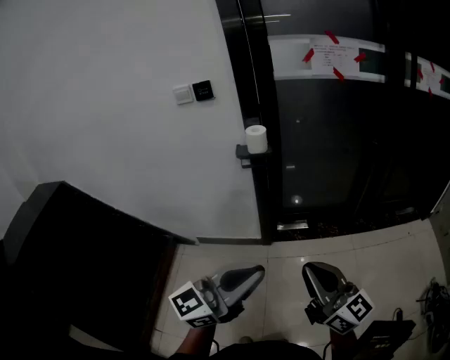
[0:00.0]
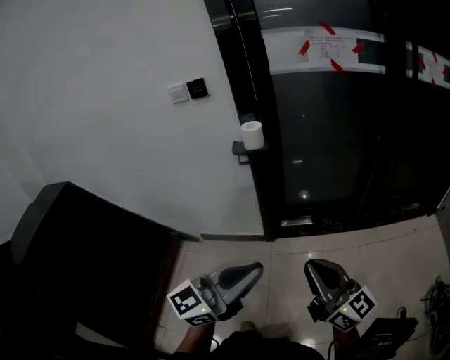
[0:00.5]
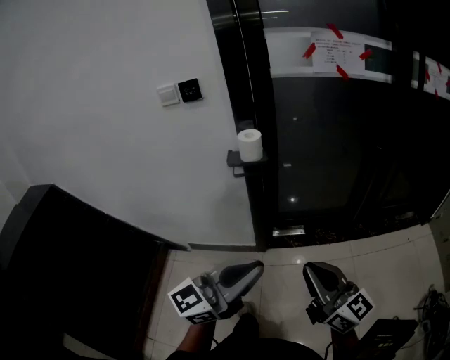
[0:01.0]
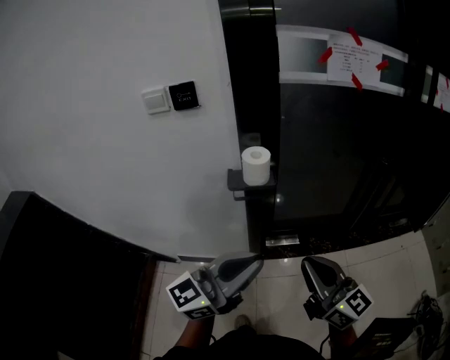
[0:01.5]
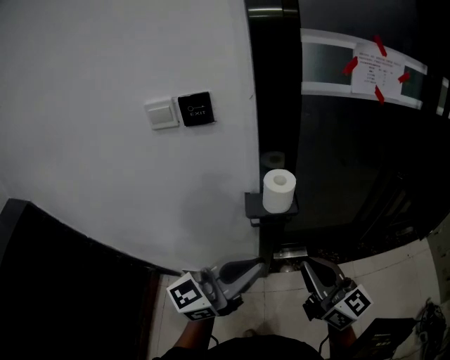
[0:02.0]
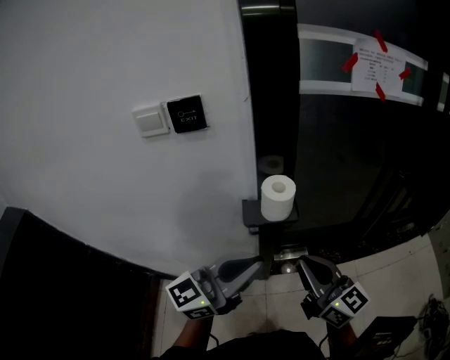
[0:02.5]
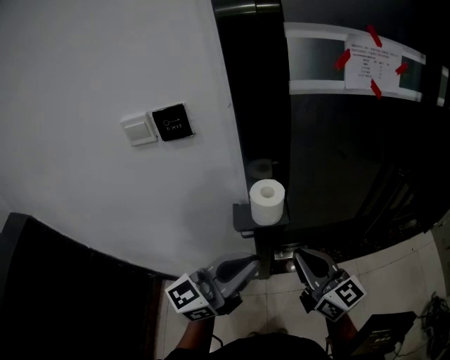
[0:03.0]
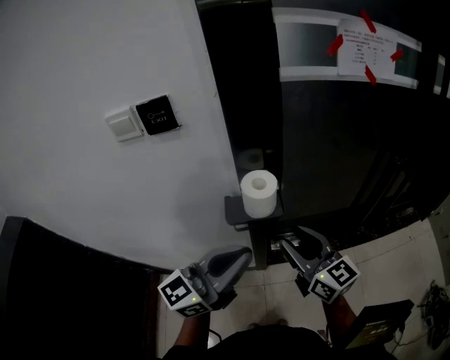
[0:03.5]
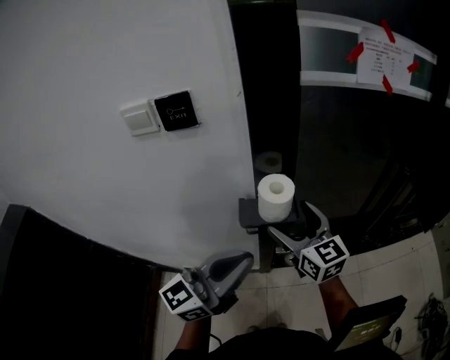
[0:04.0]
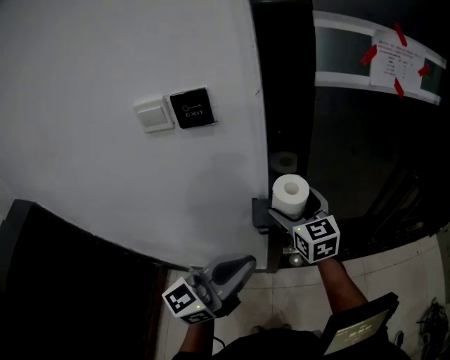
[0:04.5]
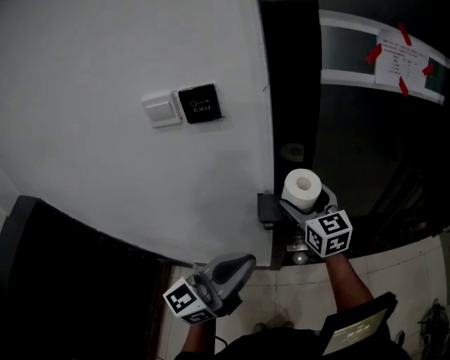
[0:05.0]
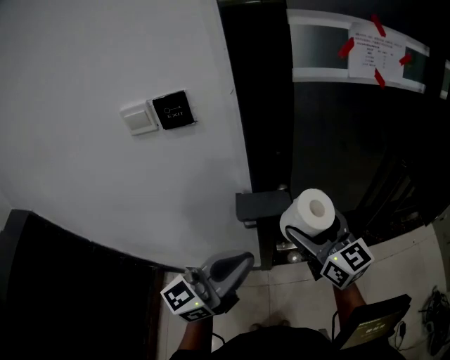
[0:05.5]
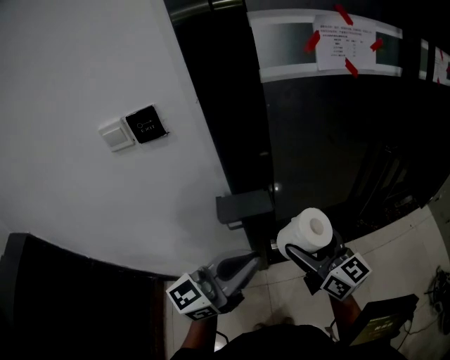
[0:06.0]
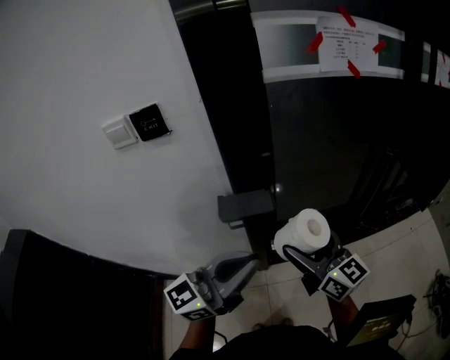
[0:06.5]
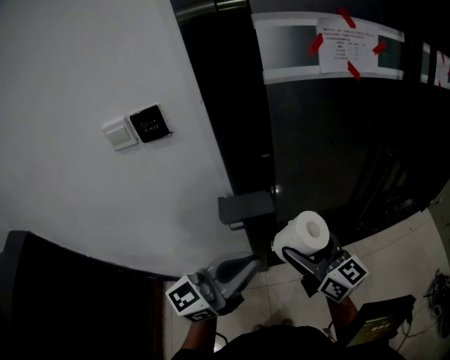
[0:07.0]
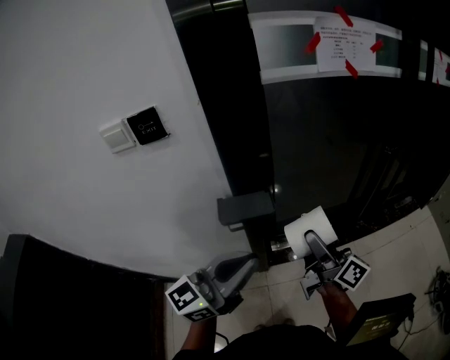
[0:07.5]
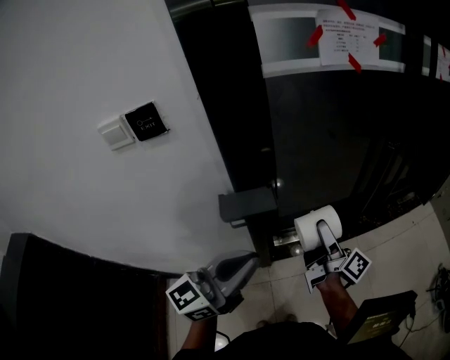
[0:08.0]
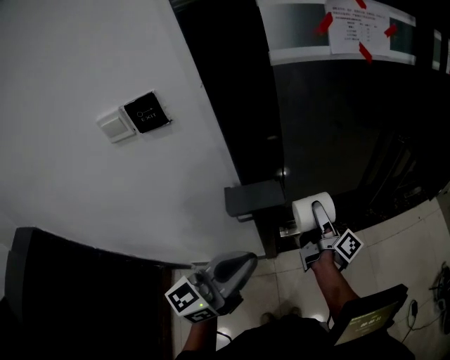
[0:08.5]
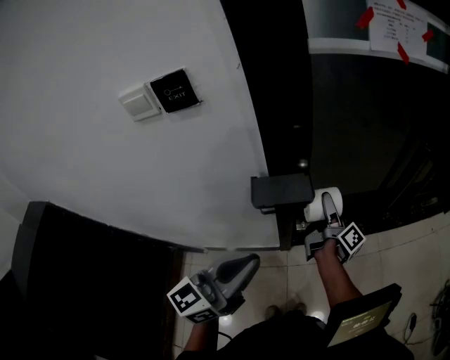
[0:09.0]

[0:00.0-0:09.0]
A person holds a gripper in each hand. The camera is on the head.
0.0 to 2.0 s: Both grippers travel together forward and to the left, some 40 cm.
2.0 to 4.5 s: The right gripper is displaced forward and to the left by some 25 cm, rotates some 30 degrees, and opens its fingers. Meanwhile the left gripper travels forward by about 5 cm.
4.5 to 7.0 s: The left gripper shifts about 10 cm to the right. The right gripper moves to the right and backward, about 20 cm, and swivels some 30 degrees.
7.0 to 9.0 s: The right gripper heads downward and forward, covering about 20 cm, and rotates around the line of its fingers by roughly 70 degrees, clockwise from behind; the left gripper travels to the left by about 5 cm.

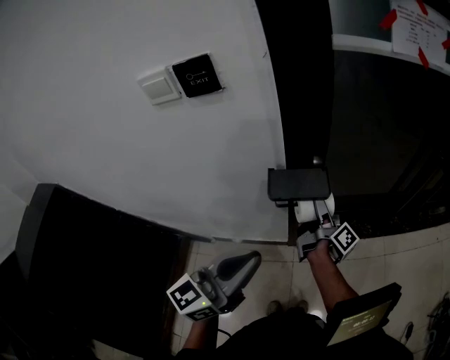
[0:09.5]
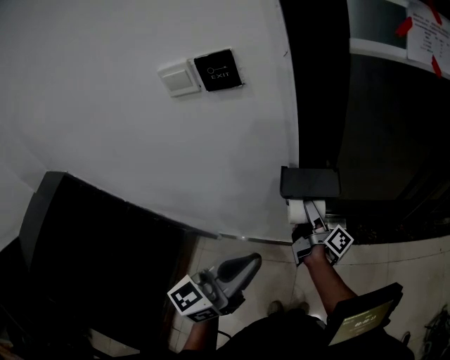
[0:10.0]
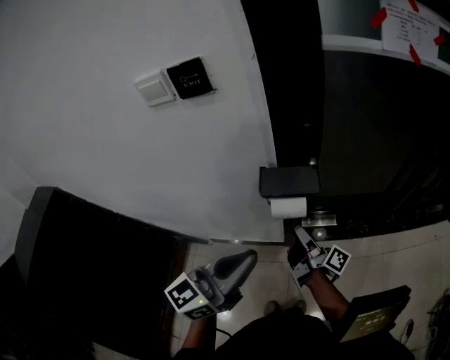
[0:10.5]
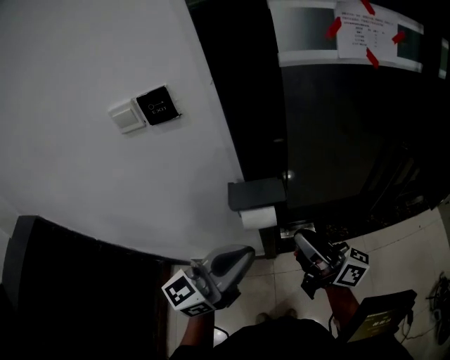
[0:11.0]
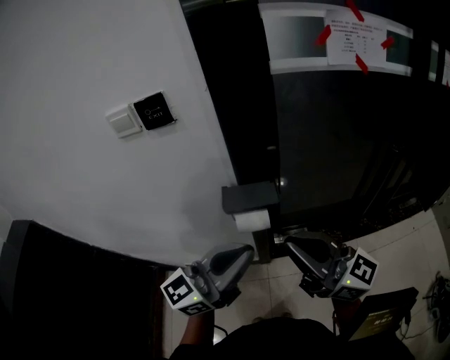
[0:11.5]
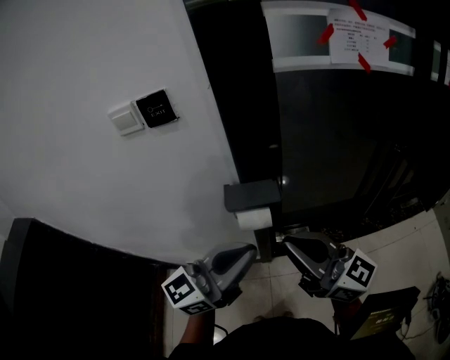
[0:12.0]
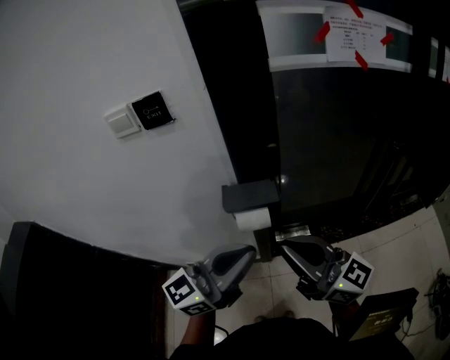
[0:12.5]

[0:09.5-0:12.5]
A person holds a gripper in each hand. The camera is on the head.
9.5 to 11.0 s: The right gripper heads upward and backward, covering approximately 20 cm, turns by some 50 degrees, and closes its fingers. The left gripper travels to the right by about 5 cm.
11.0 to 12.5 s: The right gripper shifts roughly 10 cm upward and backward, and changes its angle by approximately 30 degrees.

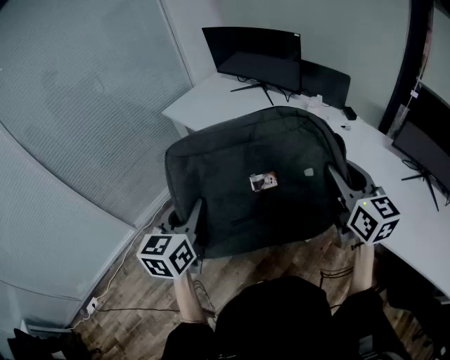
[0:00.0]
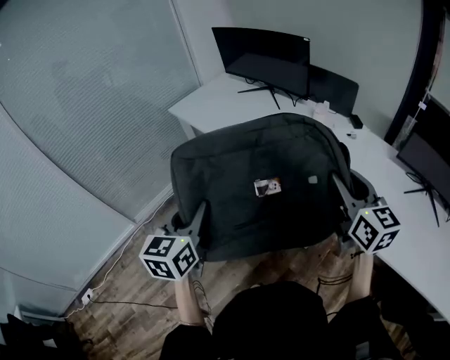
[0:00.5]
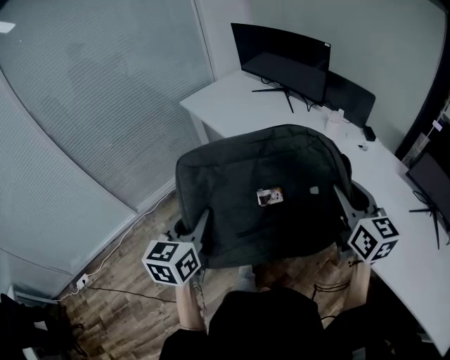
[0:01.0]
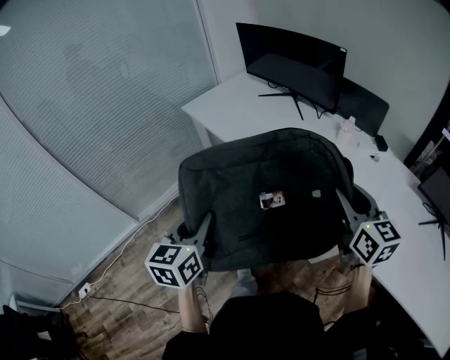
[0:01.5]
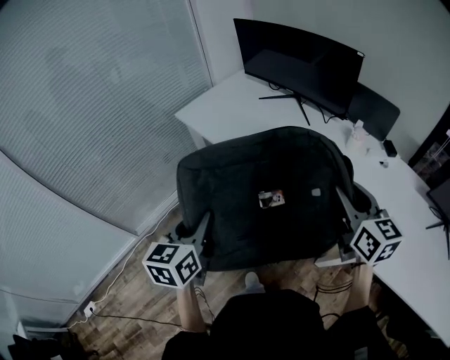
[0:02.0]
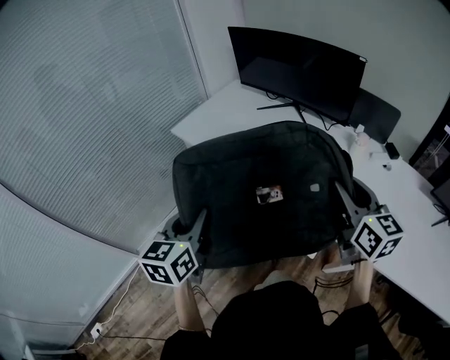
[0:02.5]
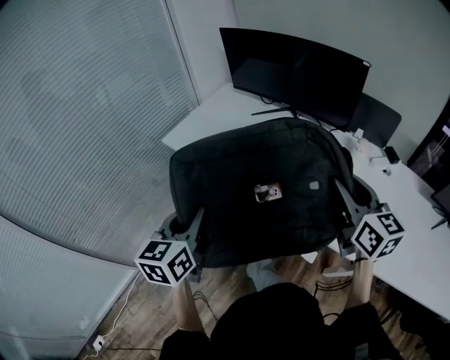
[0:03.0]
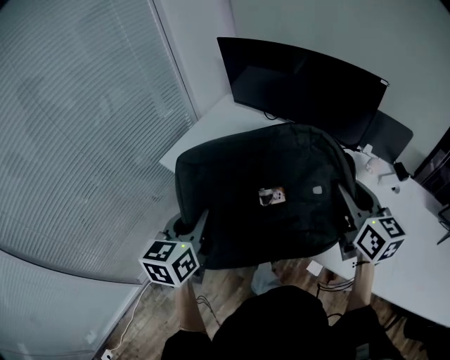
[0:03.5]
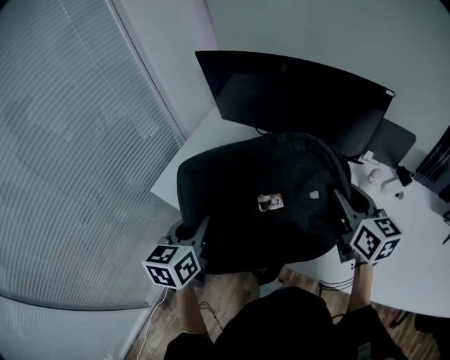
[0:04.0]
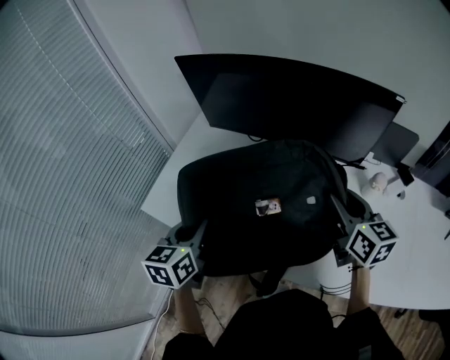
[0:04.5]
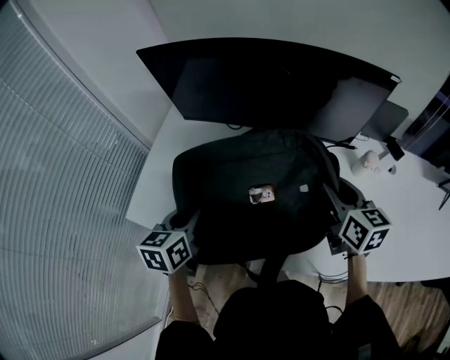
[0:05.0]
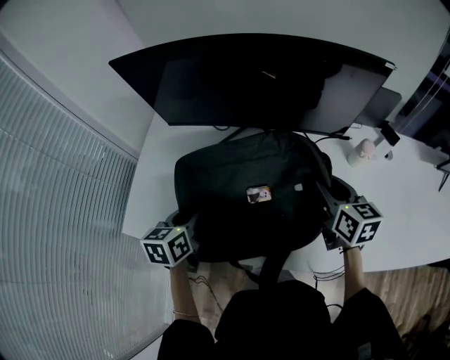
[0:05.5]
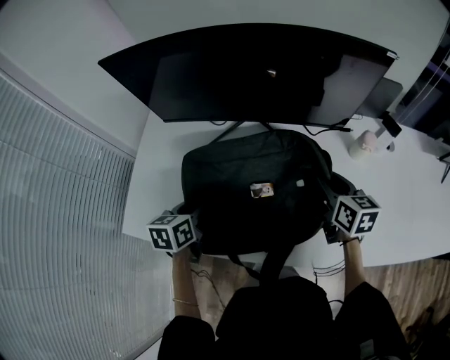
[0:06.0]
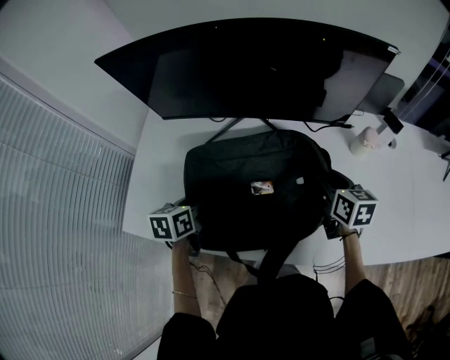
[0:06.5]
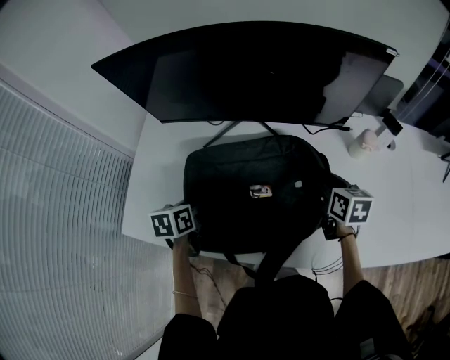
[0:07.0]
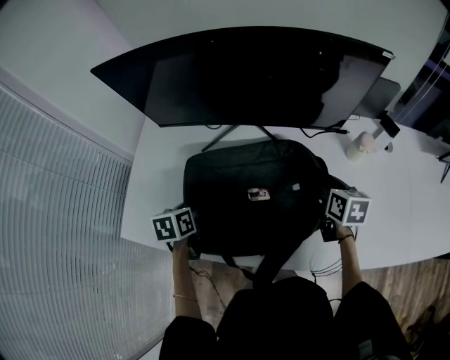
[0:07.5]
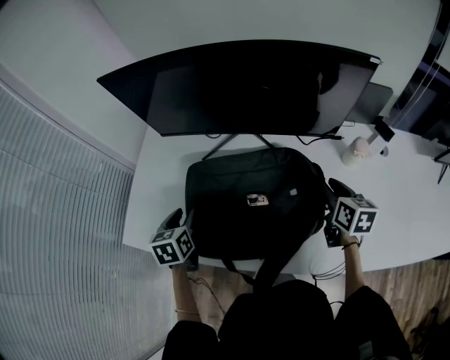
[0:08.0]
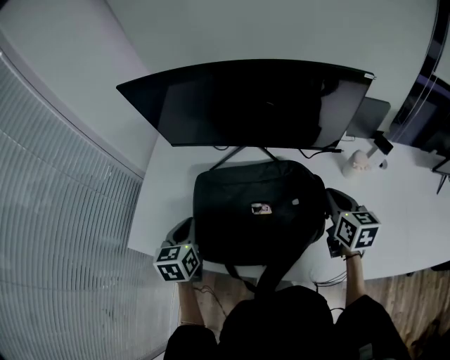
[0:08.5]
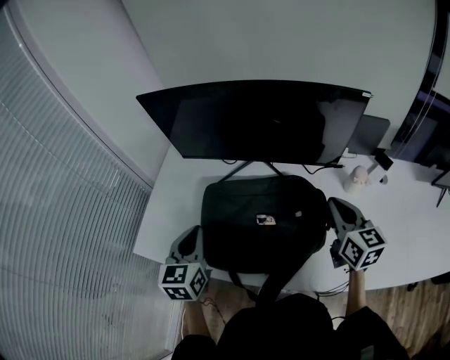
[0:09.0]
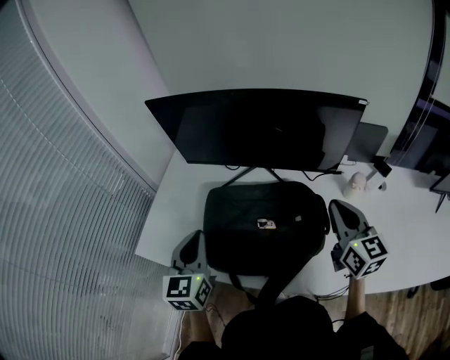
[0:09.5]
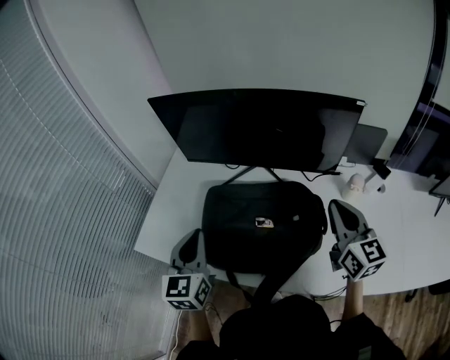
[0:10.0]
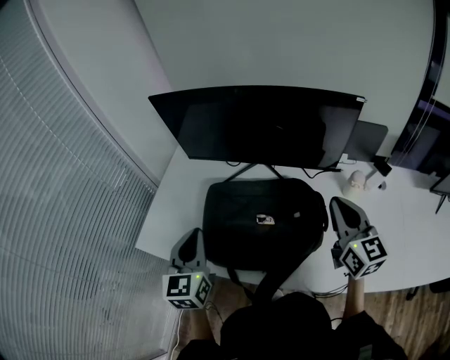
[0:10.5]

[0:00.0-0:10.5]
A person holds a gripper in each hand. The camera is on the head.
0.0 to 2.0 s: The two grippers go some 20 cm forward and to the left.
2.0 to 4.0 s: The two grippers go roughly 35 cm forward.
4.0 to 6.5 s: The right gripper goes about 20 cm downward and forward, and changes its angle by some 30 degrees. Meanwhile the left gripper shifts some 25 cm forward and downward, and turns by about 30 degrees.
6.5 to 8.5 s: Both grippers move upward, about 5 cm. The left gripper rotates some 20 degrees, and opens, then closes once more. Meanwhile the right gripper closes its fingers.
8.5 to 10.5 s: Both grippers travel together upward and backward, approximately 15 cm. The right gripper changes its angle by some 30 degrees, while the left gripper rotates roughly 20 degrees.

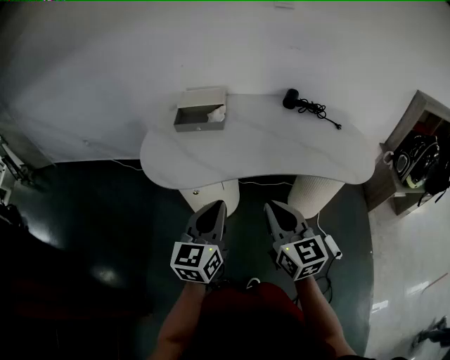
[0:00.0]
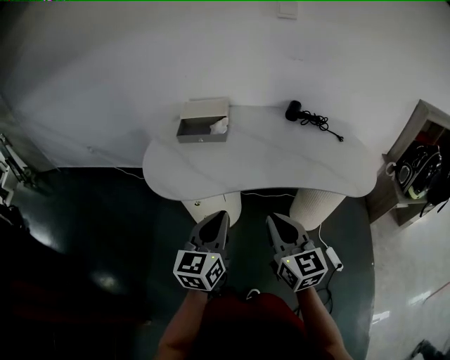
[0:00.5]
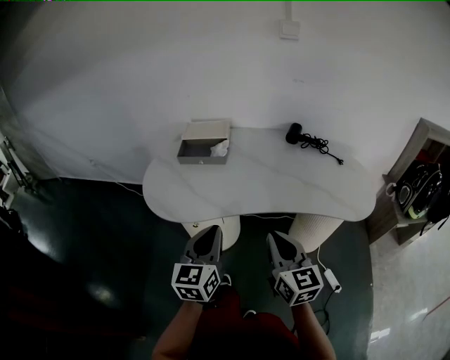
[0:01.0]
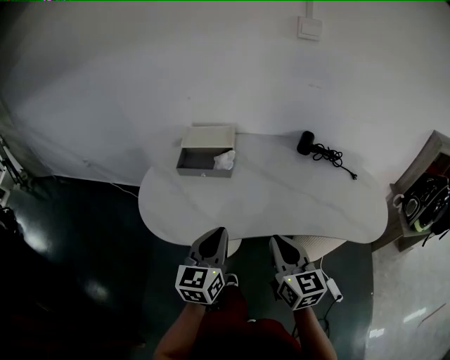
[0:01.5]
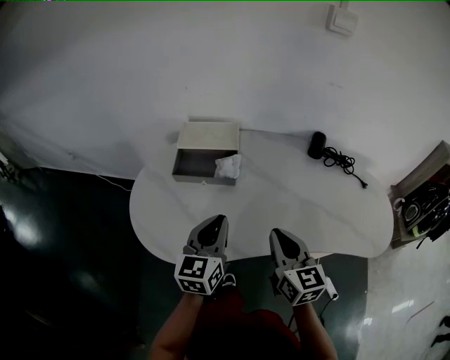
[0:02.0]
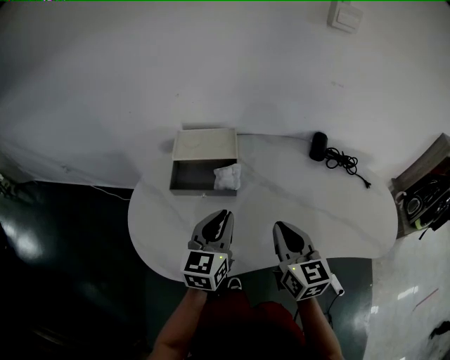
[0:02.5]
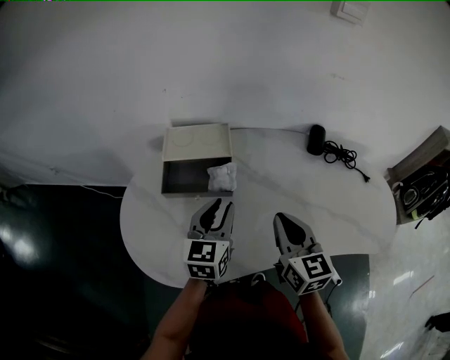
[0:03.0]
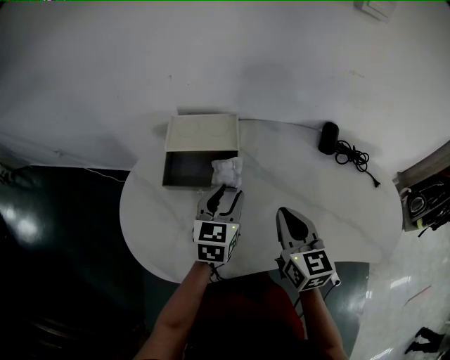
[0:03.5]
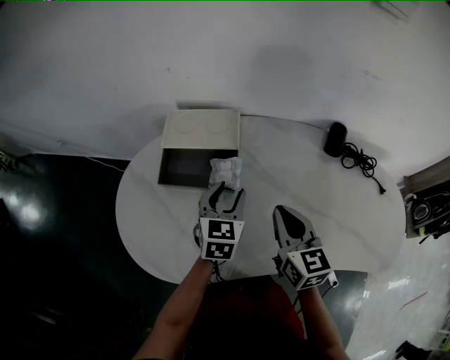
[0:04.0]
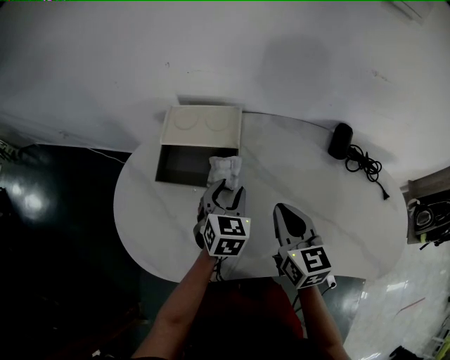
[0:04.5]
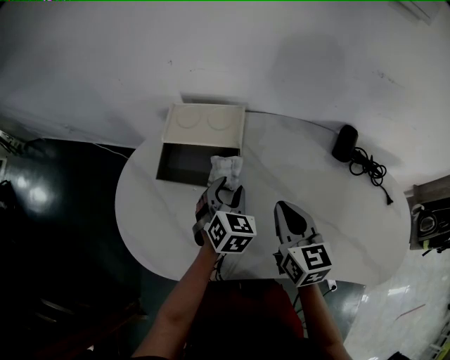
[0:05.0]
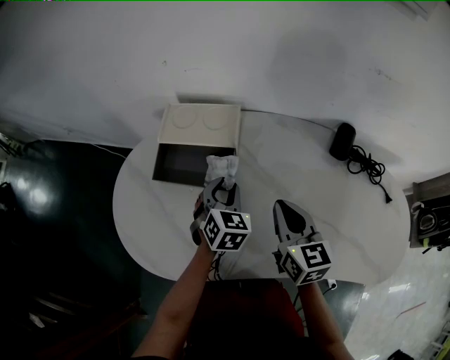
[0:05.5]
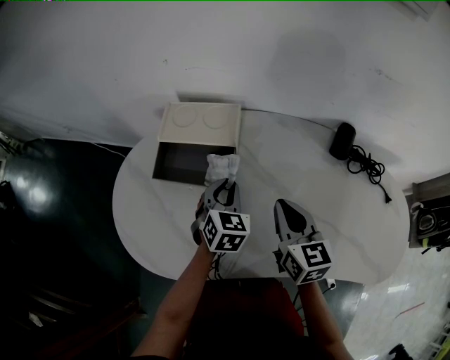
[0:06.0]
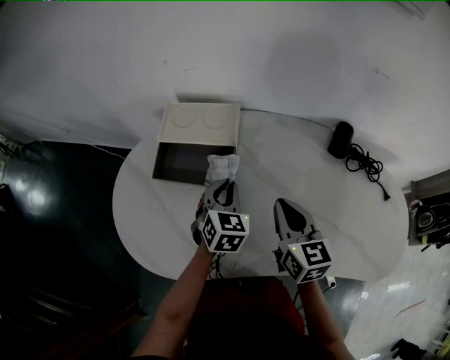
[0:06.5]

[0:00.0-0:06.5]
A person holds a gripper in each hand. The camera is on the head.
0.0 to 2.0 s: Both grippers move forward, some 25 cm.
2.0 to 4.5 s: The left gripper is displaced forward and downward by roughly 20 cm, rotates roughly 30 degrees, and opens up, while the right gripper is displaced forward by approximately 15 cm.
4.5 to 6.5 s: The left gripper closes up.
